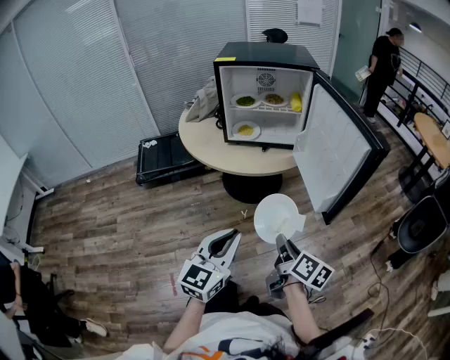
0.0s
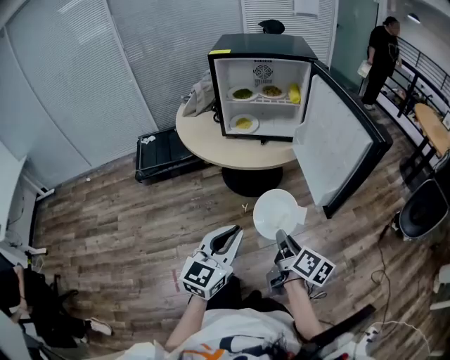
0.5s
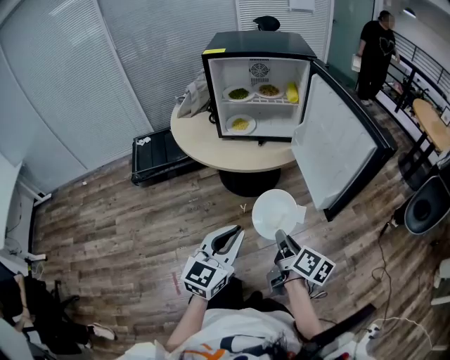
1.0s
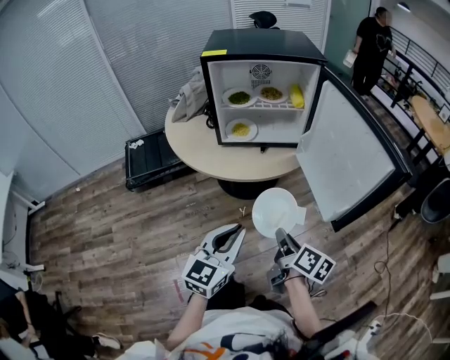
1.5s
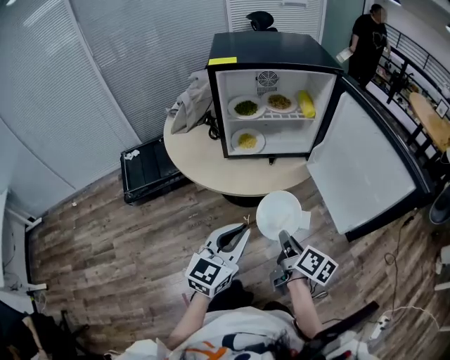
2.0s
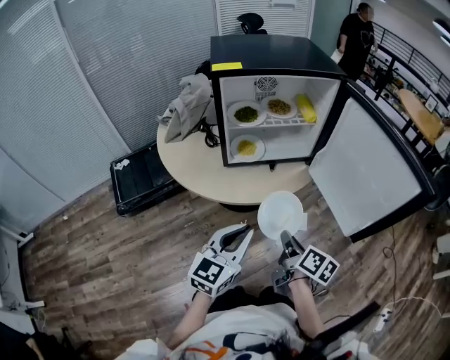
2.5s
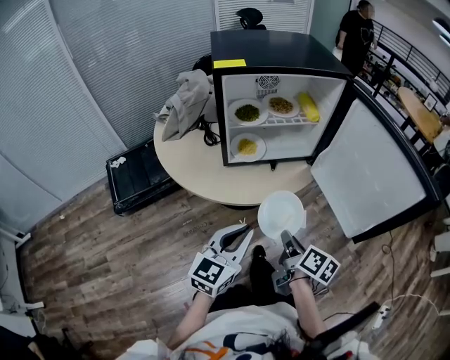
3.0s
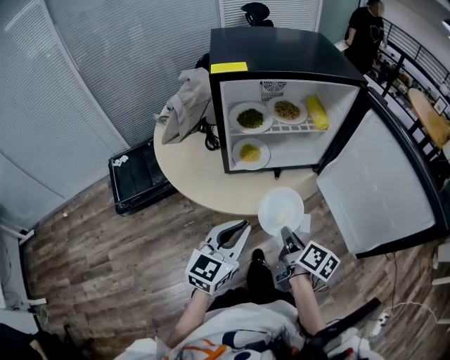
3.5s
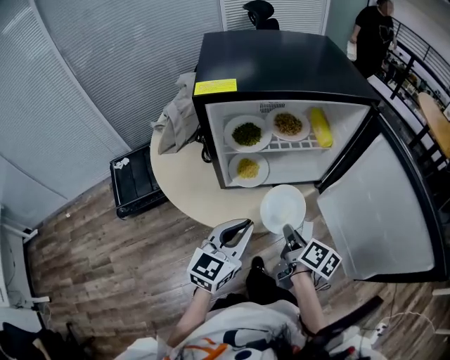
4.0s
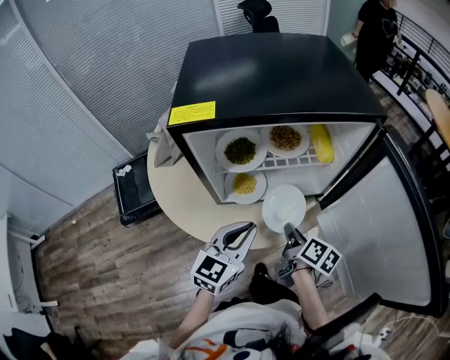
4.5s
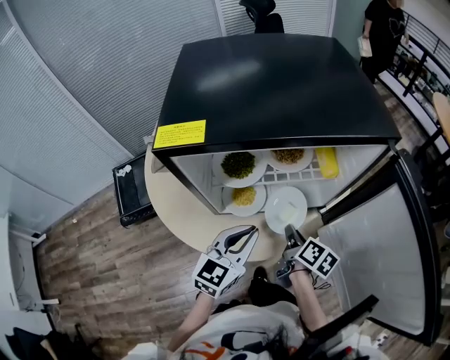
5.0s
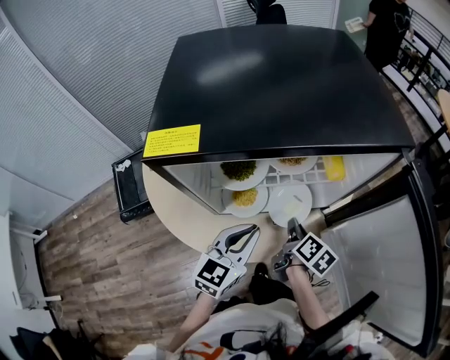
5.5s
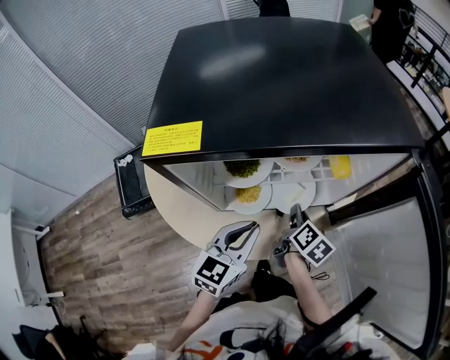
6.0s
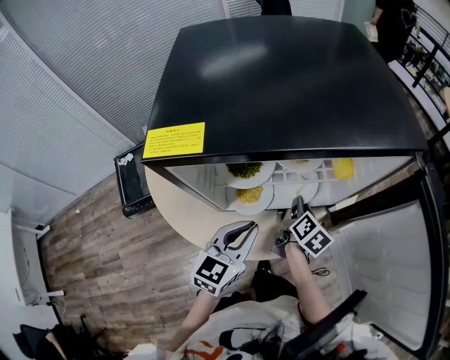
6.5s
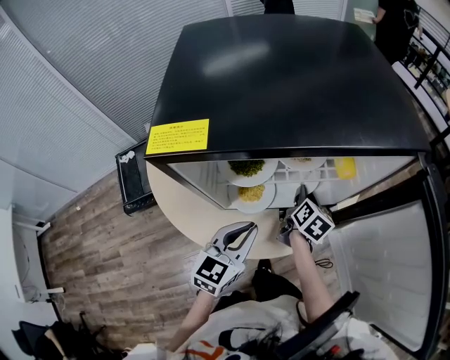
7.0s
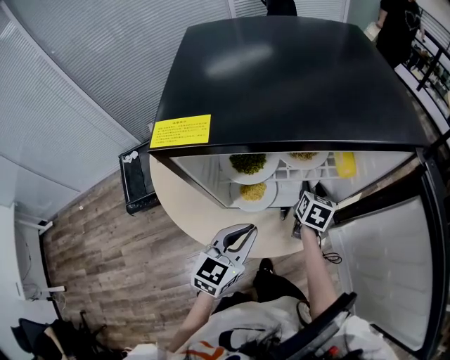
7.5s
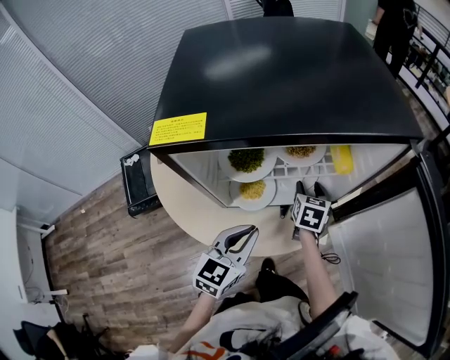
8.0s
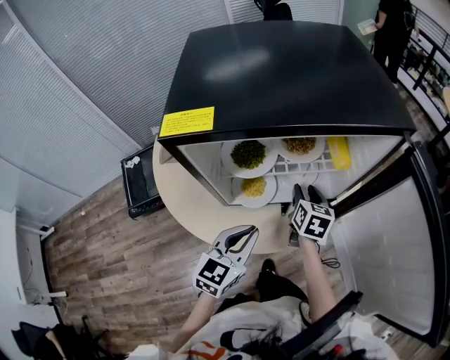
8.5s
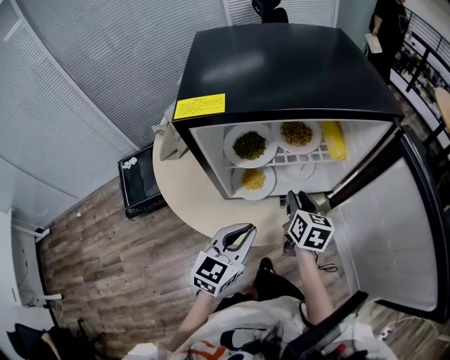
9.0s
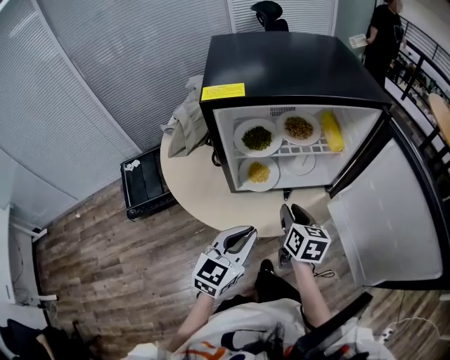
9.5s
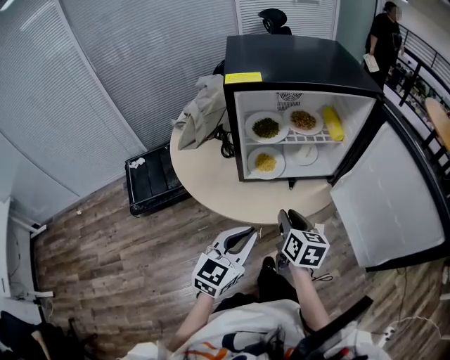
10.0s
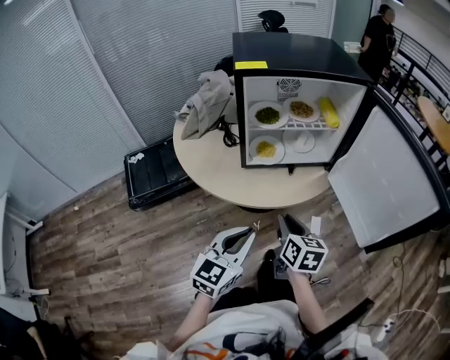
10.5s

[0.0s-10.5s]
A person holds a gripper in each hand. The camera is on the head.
0.0s to 2.0s: The grippers both shift forward and to the left by roughly 20 cm.
2.0s to 4.0s: Both grippers move forward, about 20 cm.
4.0s to 6.5s: The left gripper shifts approximately 10 cm forward. The right gripper shifts about 20 cm forward.
6.5s to 8.5s: The right gripper turns by some 30 degrees, and opens.
8.5s to 10.5s: Both grippers move backward, roughly 30 cm. The right gripper closes.

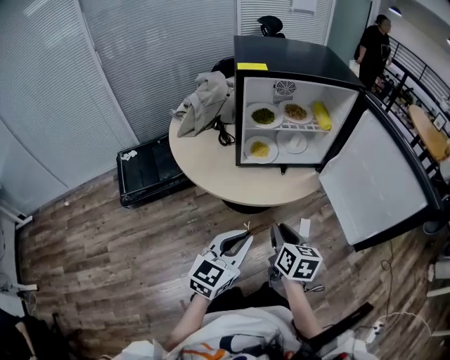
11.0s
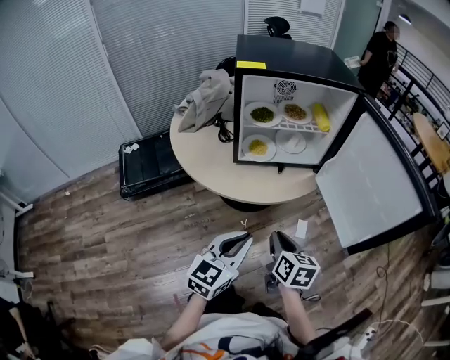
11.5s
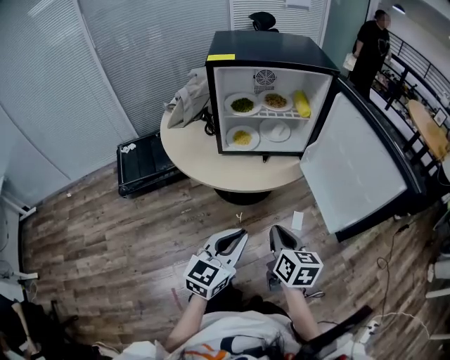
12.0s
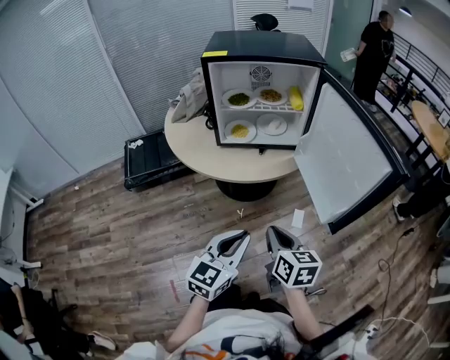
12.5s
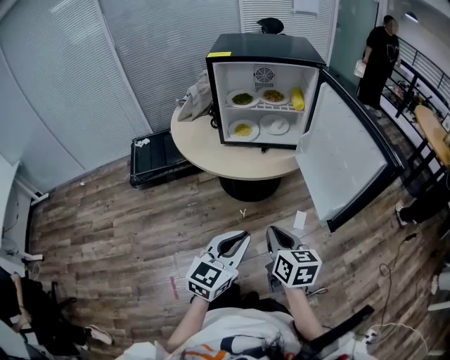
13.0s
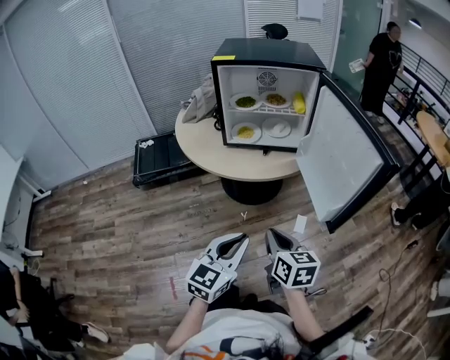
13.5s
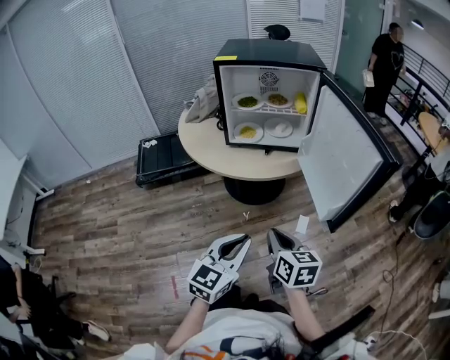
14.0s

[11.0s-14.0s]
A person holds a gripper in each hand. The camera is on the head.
11.0s to 12.5s: The grippers both shift to the right and backward by roughly 15 cm.
12.5s to 14.0s: The left gripper moves backward, some 5 cm.

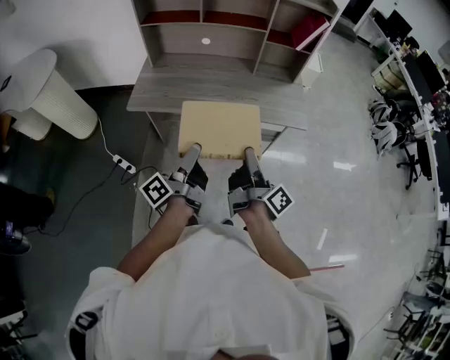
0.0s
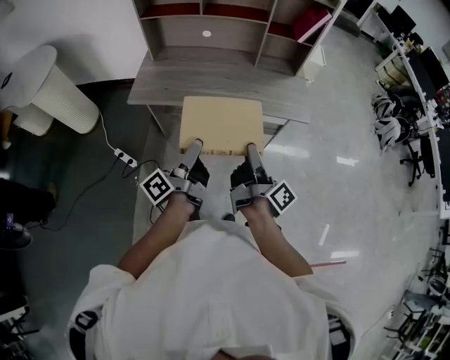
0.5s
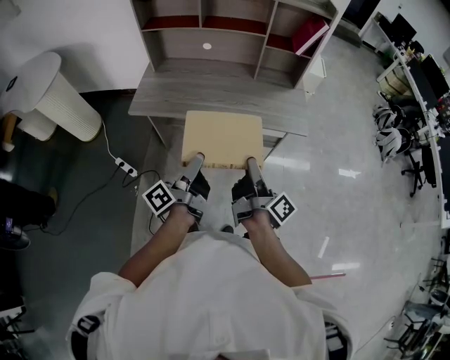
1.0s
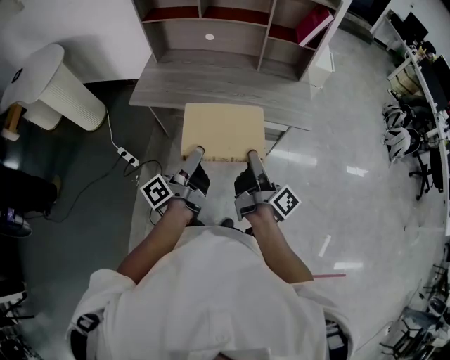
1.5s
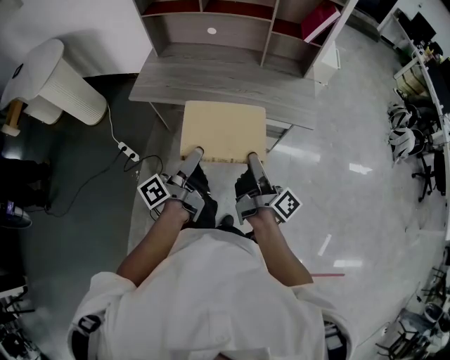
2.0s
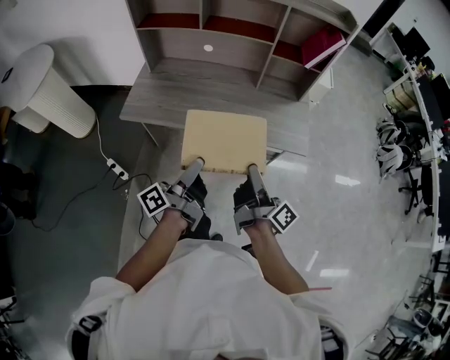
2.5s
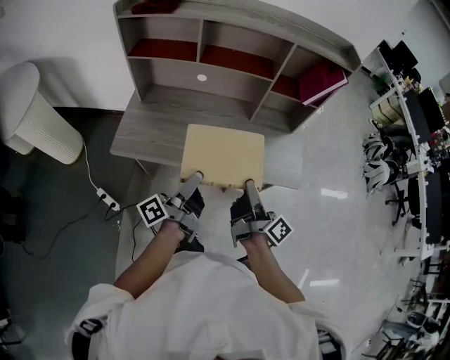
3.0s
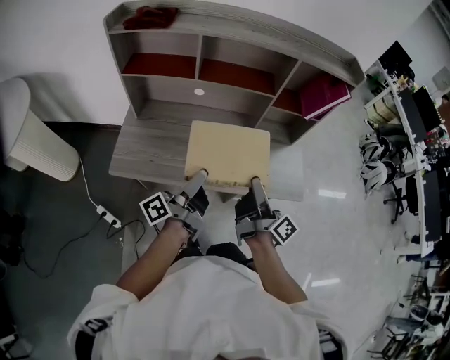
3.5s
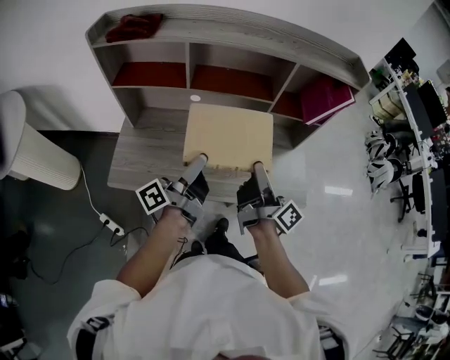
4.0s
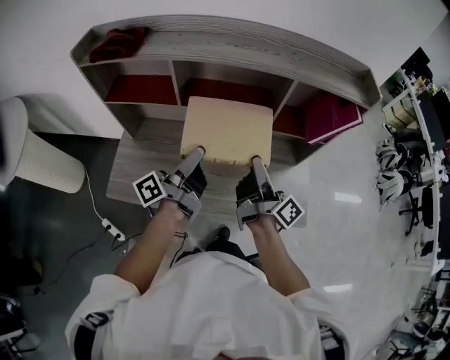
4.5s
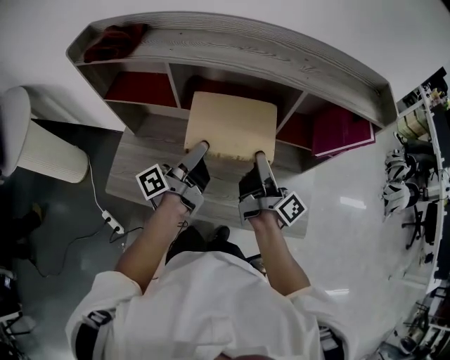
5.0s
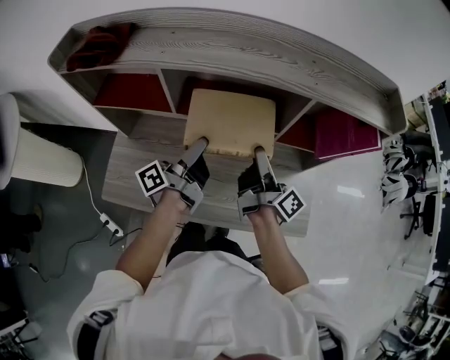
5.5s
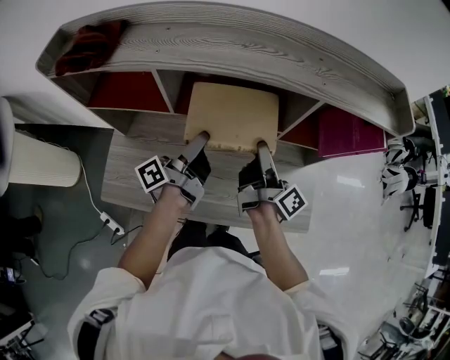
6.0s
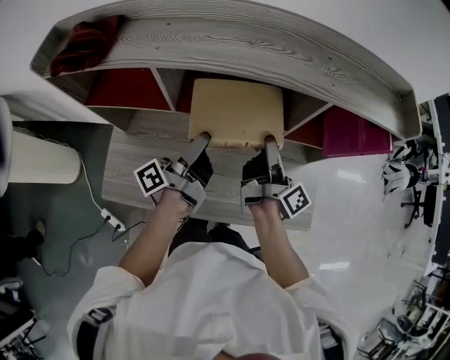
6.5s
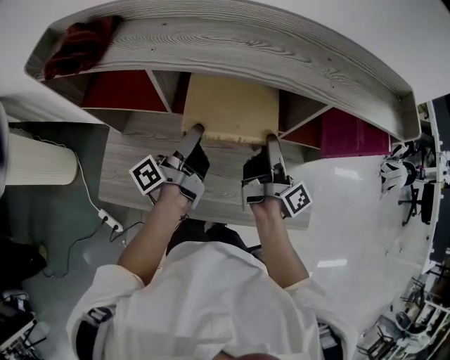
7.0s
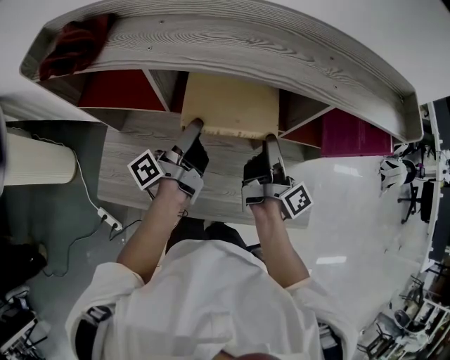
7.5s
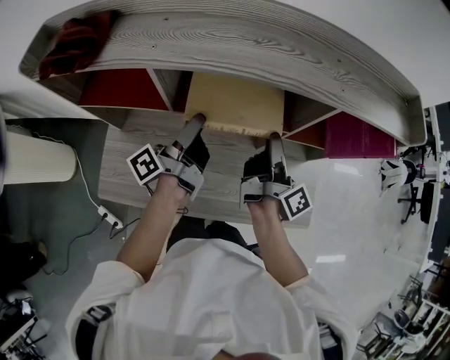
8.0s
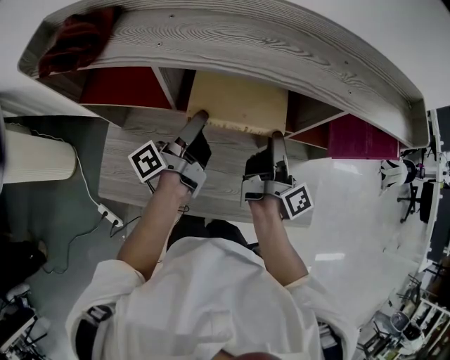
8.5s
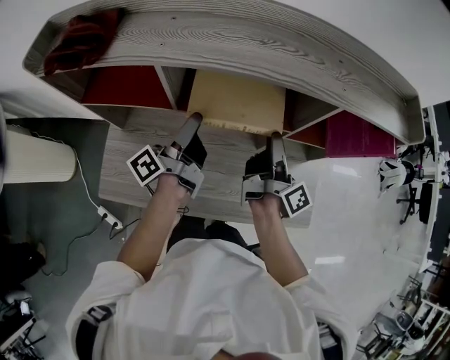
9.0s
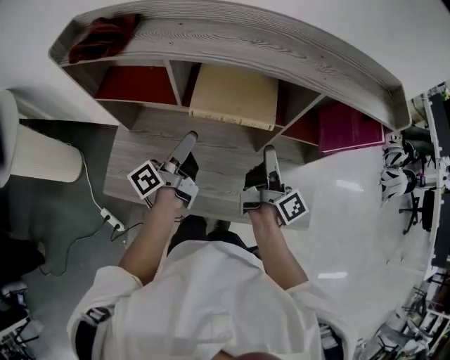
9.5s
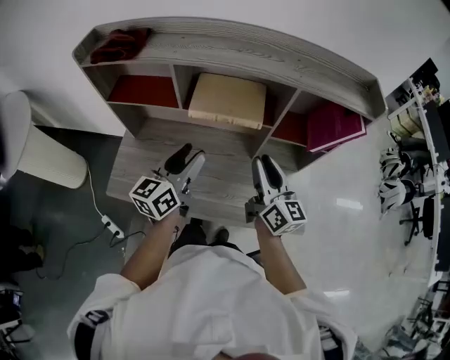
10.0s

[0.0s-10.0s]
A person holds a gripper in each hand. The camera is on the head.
0.0s to 2.0s: Both grippers travel together to the right, some 5 cm.
2.0s to 4.0s: Both grippers travel together forward, approximately 35 cm.
4.0s to 6.0s: The grippers both shift forward by roughly 20 cm.
6.0s to 8.0s: There are only small adjustments of the grippers.
8.0s to 10.0s: The left gripper heads backward, covering about 15 cm, and twists approximately 60 degrees clockwise, seen from behind, while the right gripper shifts some 10 cm backward and upward, and rotates around the line of its fingers by about 50 degrees, counterclockwise from behind.

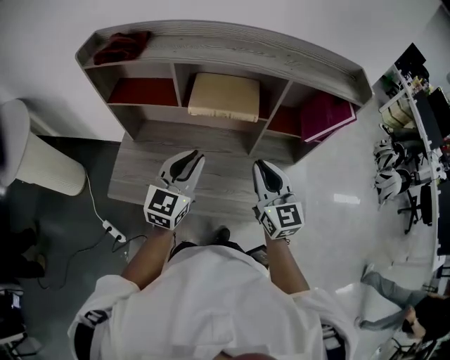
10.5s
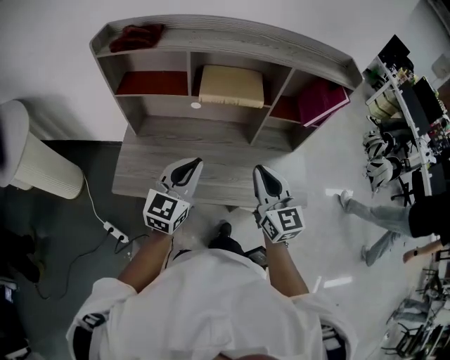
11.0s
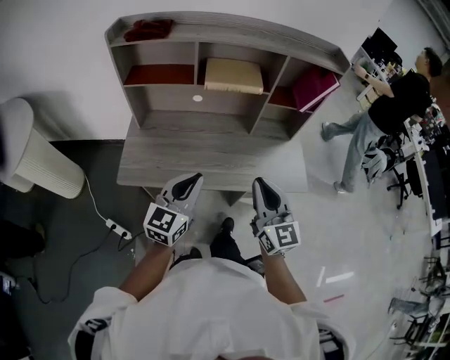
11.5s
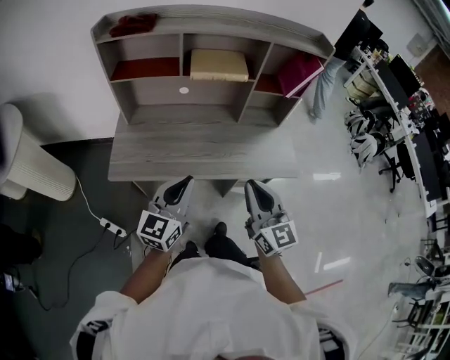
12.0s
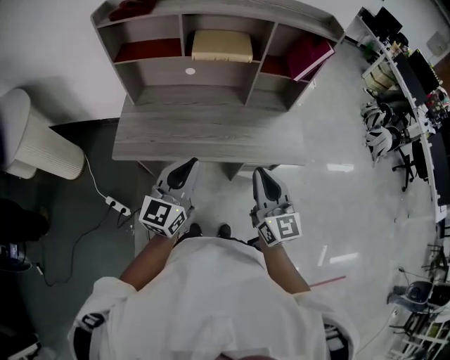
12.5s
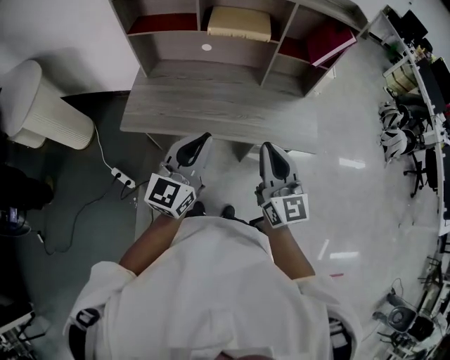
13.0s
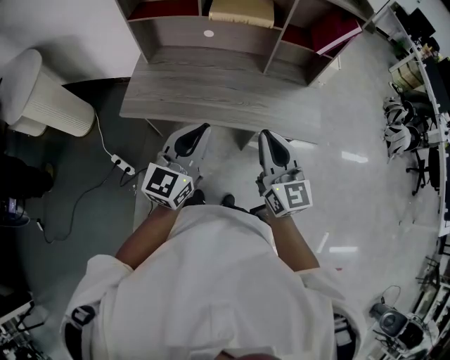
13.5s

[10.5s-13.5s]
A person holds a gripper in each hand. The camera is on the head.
10.5s to 12.0s: The grippers both shift backward by some 25 cm.
12.0s to 13.5s: The left gripper goes roughly 5 cm to the right.
